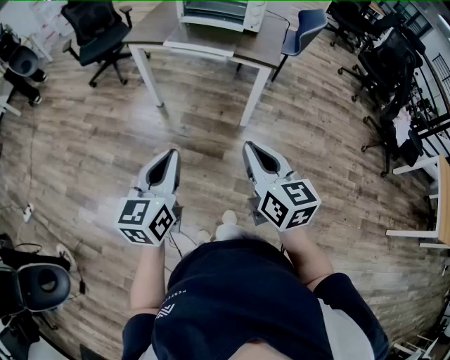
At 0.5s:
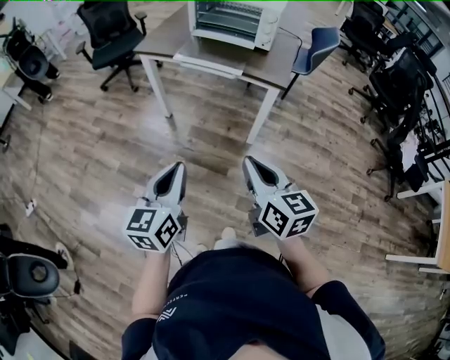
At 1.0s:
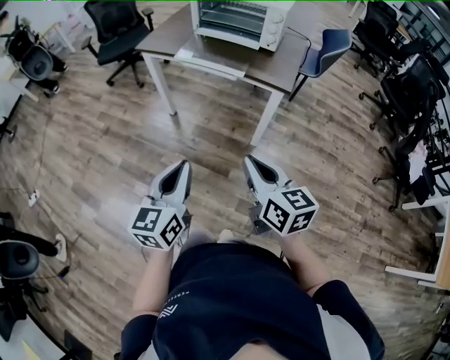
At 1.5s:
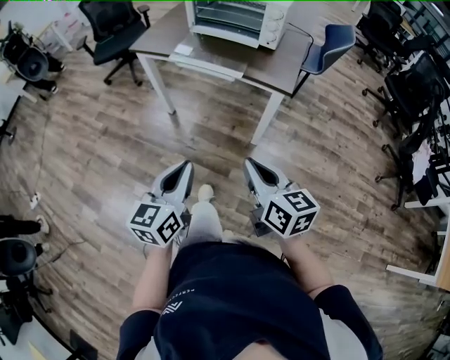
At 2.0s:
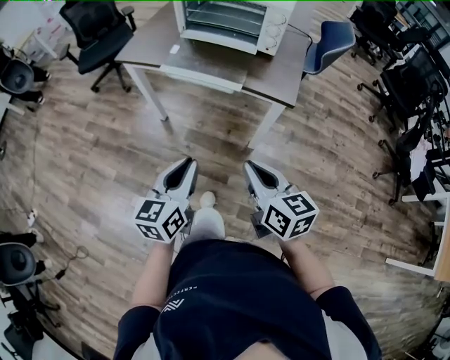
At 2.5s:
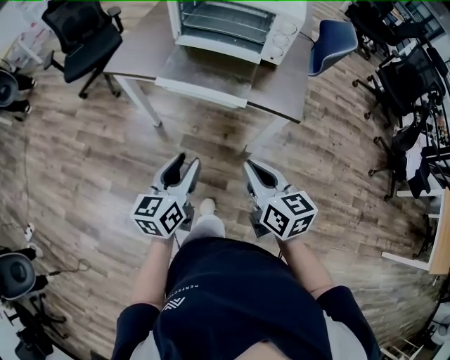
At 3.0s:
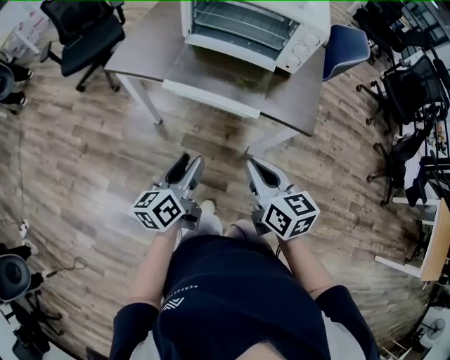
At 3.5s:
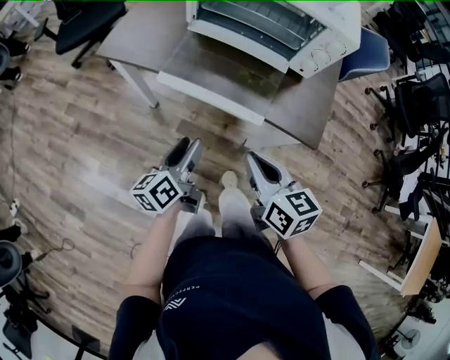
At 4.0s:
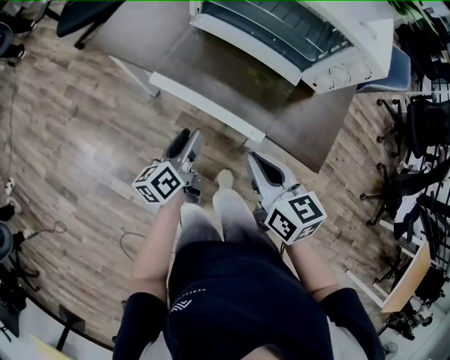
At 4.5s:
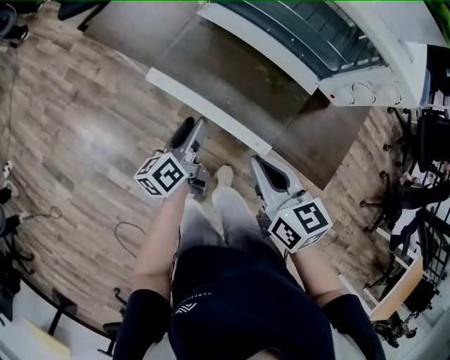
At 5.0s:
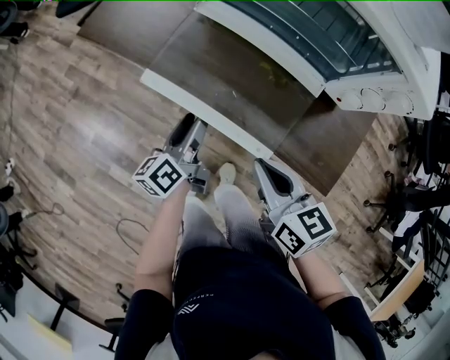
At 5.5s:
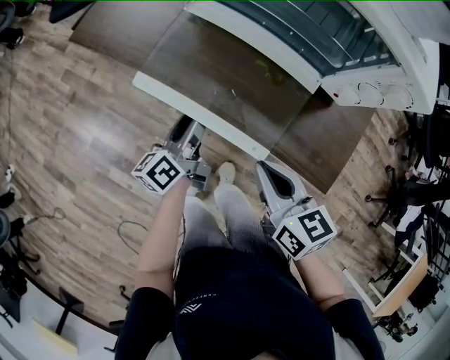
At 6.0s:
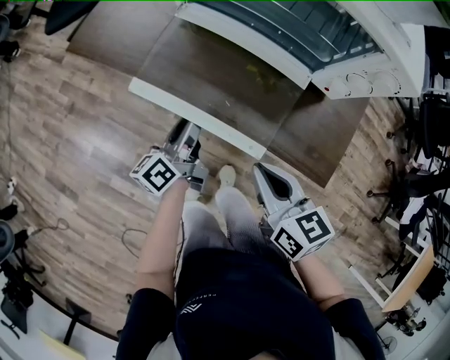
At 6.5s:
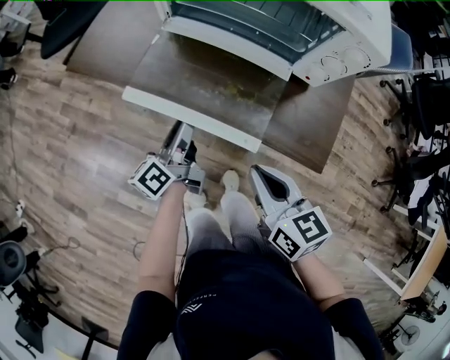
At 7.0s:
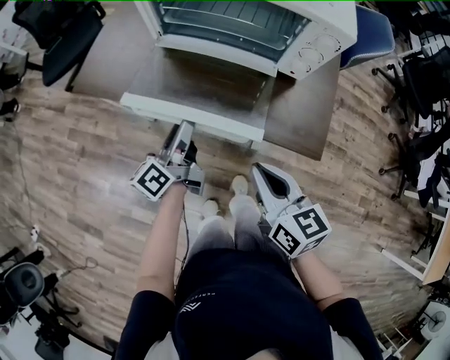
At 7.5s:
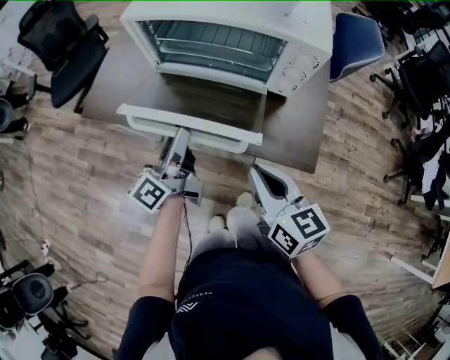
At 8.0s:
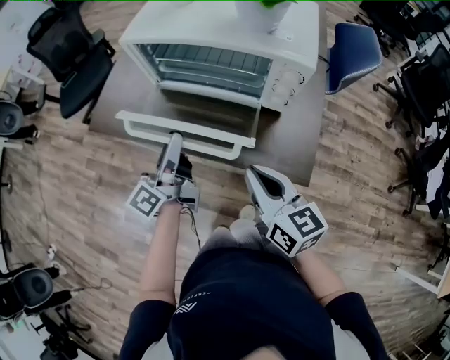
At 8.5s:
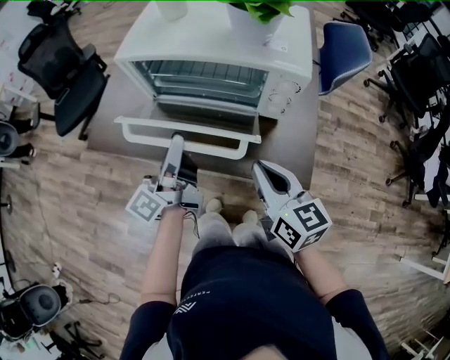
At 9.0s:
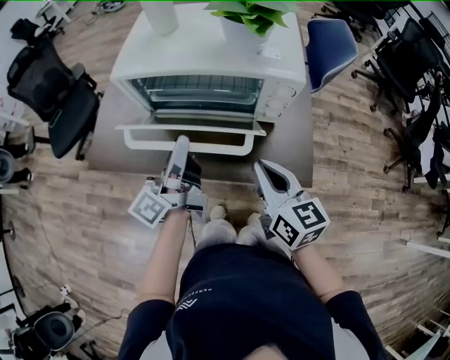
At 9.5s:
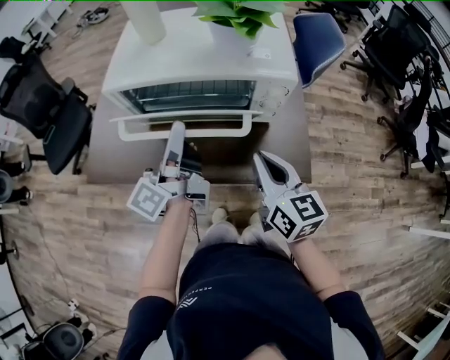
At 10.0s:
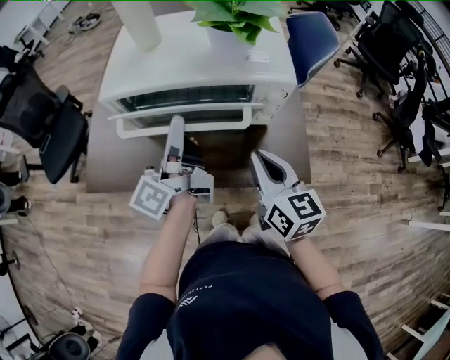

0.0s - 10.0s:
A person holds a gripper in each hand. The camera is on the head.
0.0s - 2.0s: Both grippers travel together forward, some 20 cm.
2.0s - 4.0s: The right gripper moves forward, roughly 25 cm. The left gripper is displaced forward and downward by some 30 cm, rotates about 40 degrees, and opens its fingers.
4.0s - 6.0s: The left gripper shifts approximately 5 cm forward, and closes up.
6.0s - 8.0s: The right gripper travels upward by approximately 10 cm; the left gripper is displaced upward by some 15 cm.
8.0s - 10.0s: The left gripper travels forward and upward by some 15 cm, while the right gripper travels forward by about 10 cm, and changes its angle by some 20 degrees.

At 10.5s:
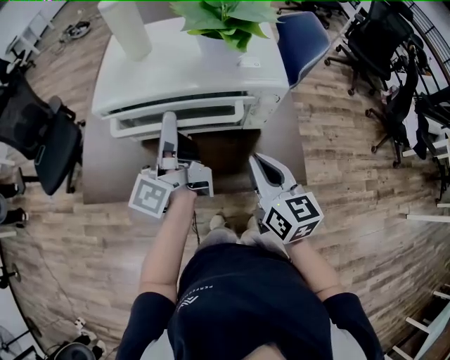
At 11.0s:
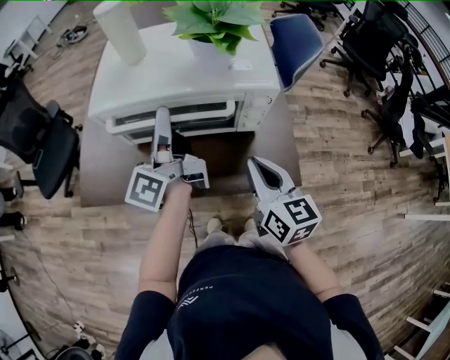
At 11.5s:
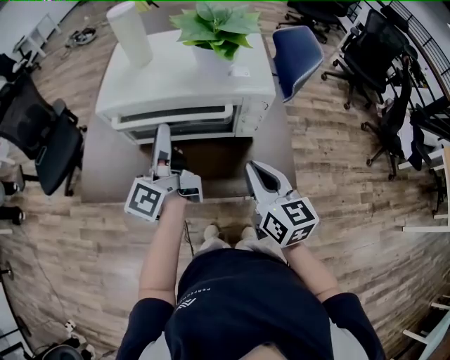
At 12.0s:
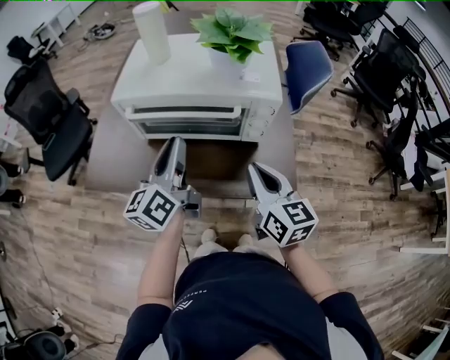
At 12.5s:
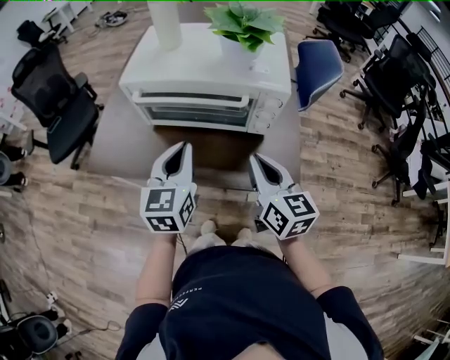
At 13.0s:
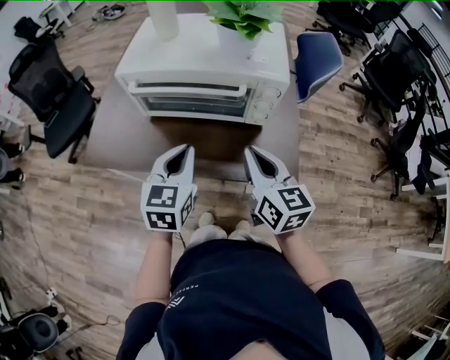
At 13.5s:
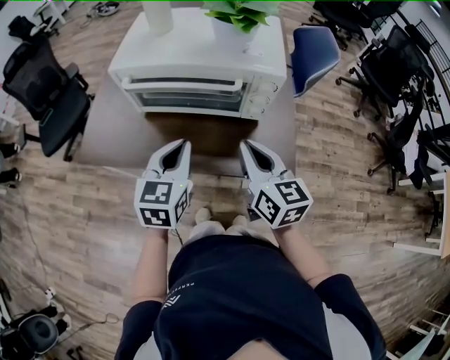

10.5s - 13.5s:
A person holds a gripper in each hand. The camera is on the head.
10.5s - 12.0s: The left gripper travels backward by approximately 5 cm, and changes its angle by roughly 30 degrees.
12.0s - 13.5s: The left gripper moves backward and downward, approximately 10 cm, and turns by about 40 degrees.

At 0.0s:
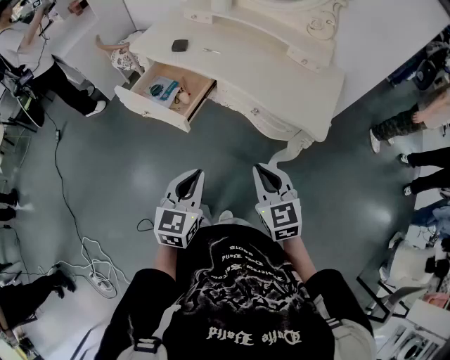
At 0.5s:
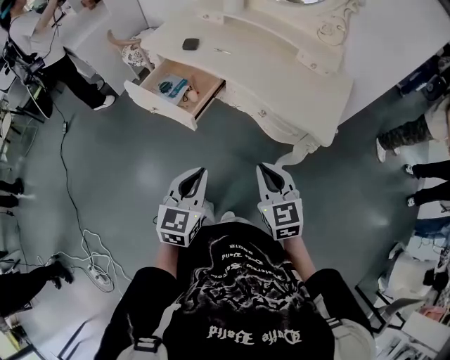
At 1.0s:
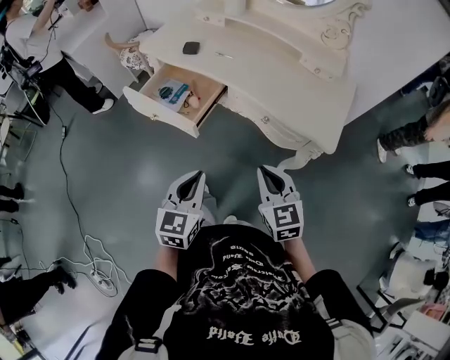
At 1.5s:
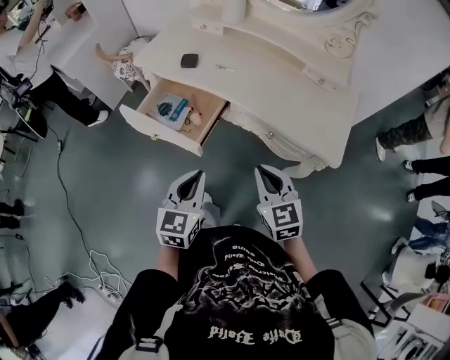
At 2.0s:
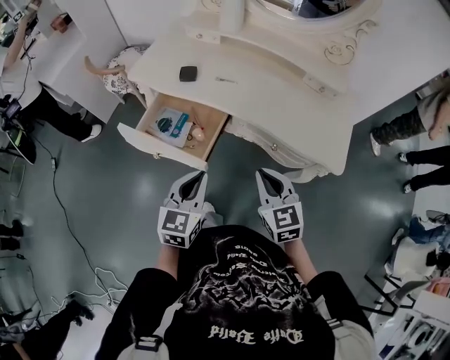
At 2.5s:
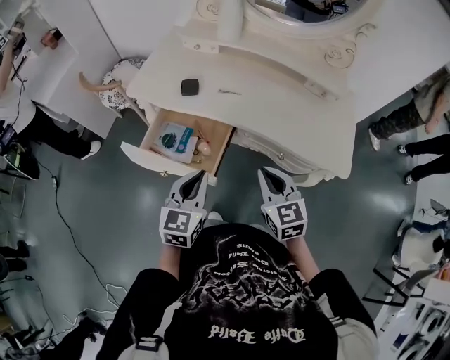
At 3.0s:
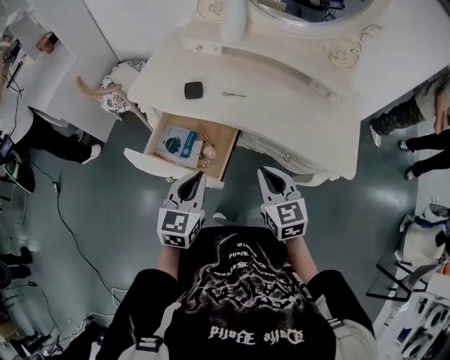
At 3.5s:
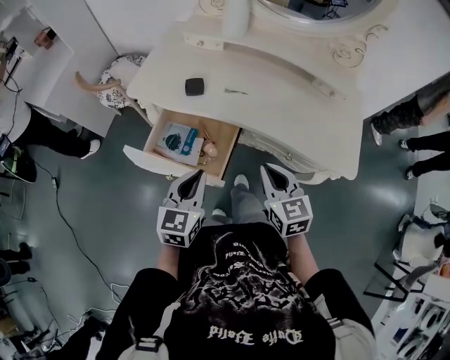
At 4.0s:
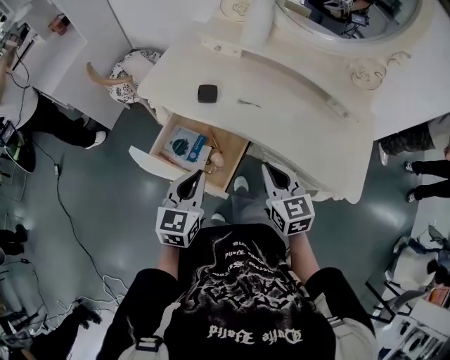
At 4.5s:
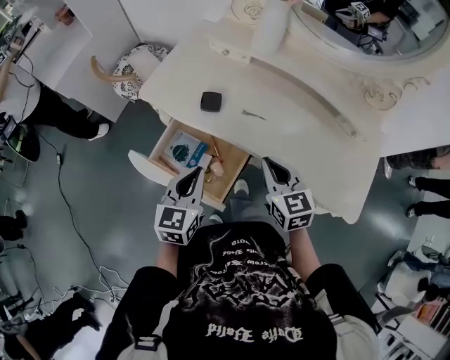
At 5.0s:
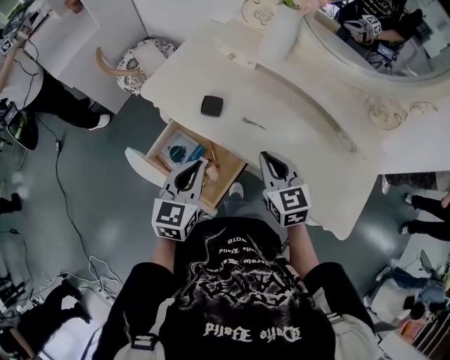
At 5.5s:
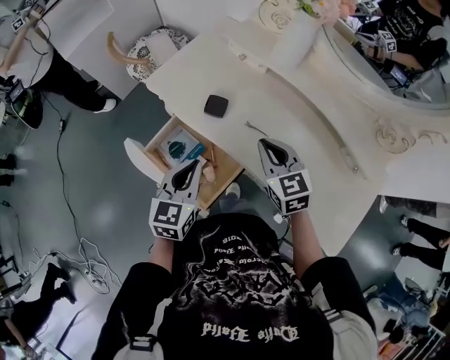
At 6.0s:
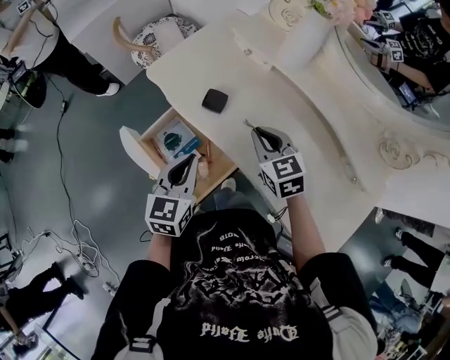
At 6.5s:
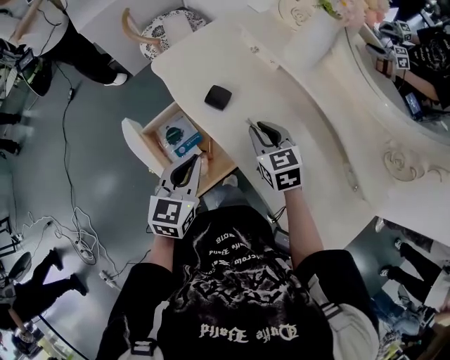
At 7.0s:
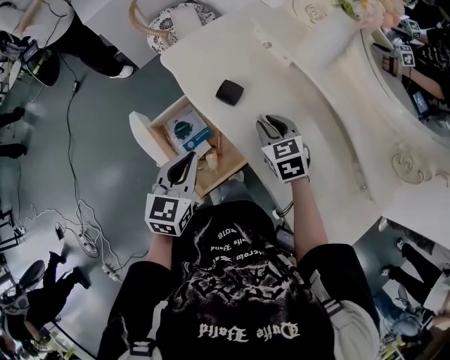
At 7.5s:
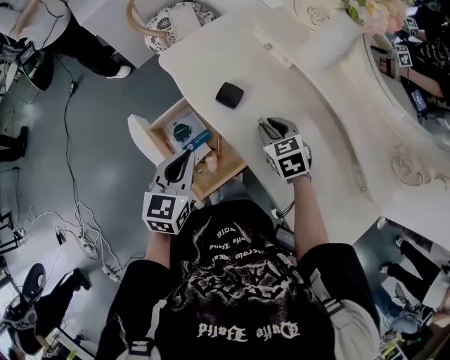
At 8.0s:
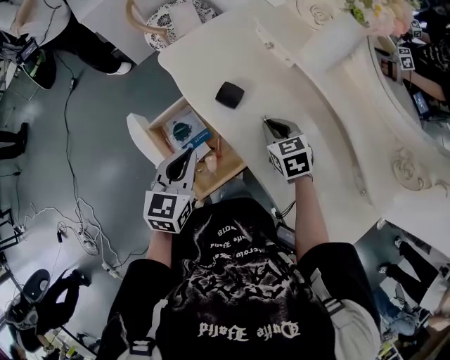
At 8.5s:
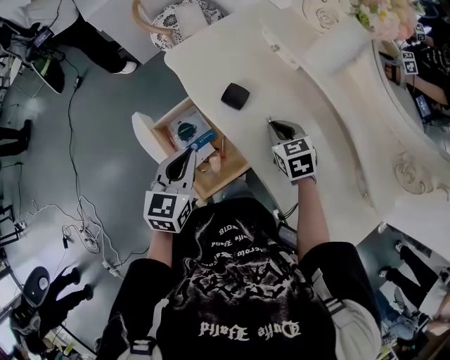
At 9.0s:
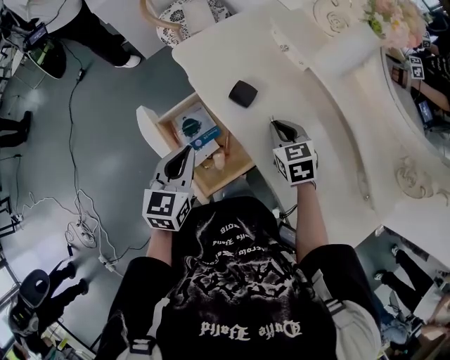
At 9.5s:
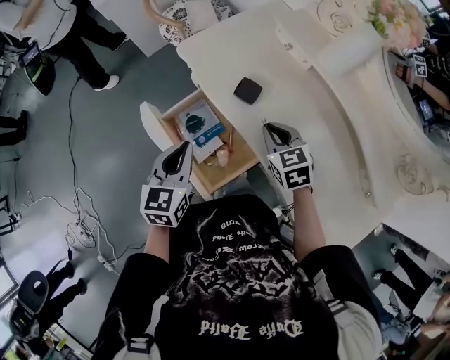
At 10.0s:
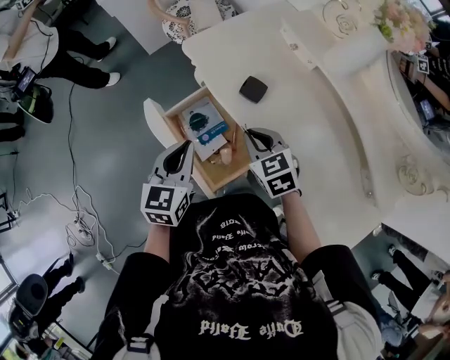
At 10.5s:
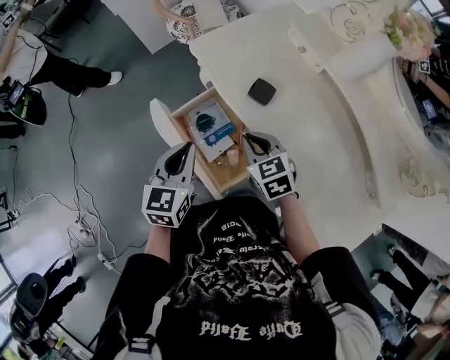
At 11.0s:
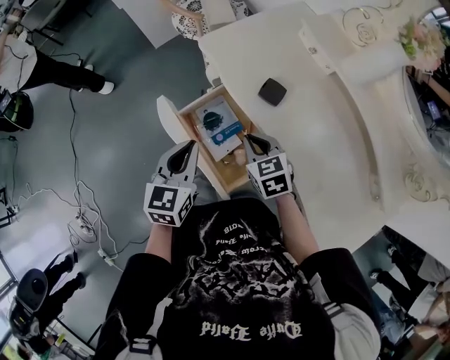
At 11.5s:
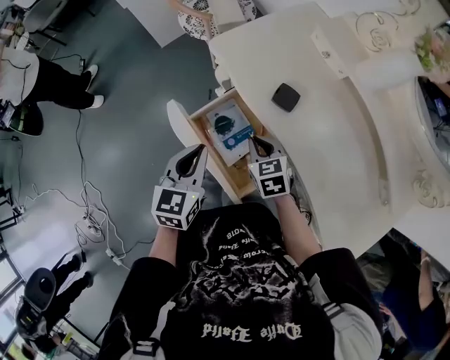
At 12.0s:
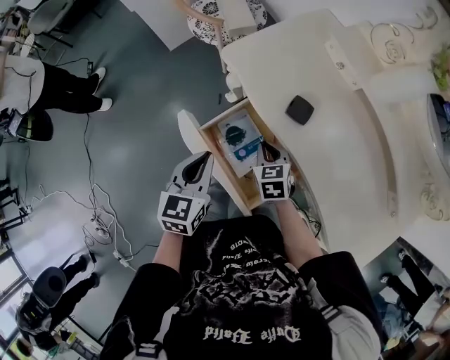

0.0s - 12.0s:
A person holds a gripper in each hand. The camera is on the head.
0.0s - 2.0s: The grippers both shift forward and to the left by about 15 cm.
2.0s - 4.0s: The grippers both shift forward and to the left by roughly 15 cm.
4.0s - 6.0s: The left gripper goes about 10 cm forward, and turns by about 20 degrees; the right gripper goes about 20 cm forward, and rotates roughly 30 degrees.
6.0s - 8.0s: The right gripper heads downward, covering approximately 5 cm.
8.0s - 10.0s: The left gripper is displaced to the left by about 5 cm, while the right gripper shifts approximately 10 cm to the left.
10.0s - 12.0s: The right gripper moves downward and to the left, roughly 10 cm. Meanwhile the left gripper is displaced to the left by approximately 5 cm.

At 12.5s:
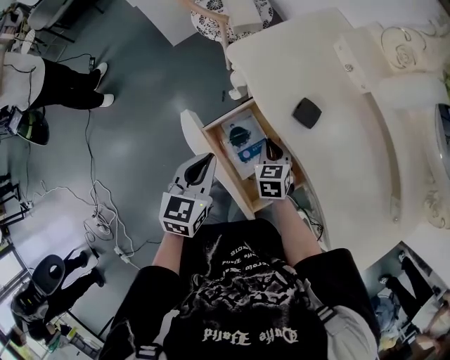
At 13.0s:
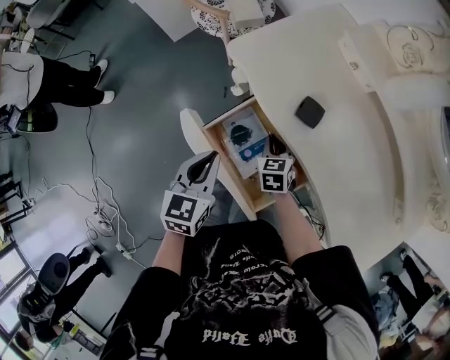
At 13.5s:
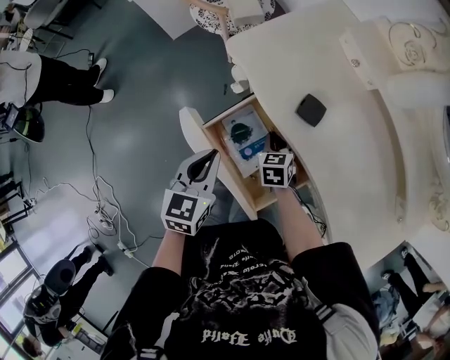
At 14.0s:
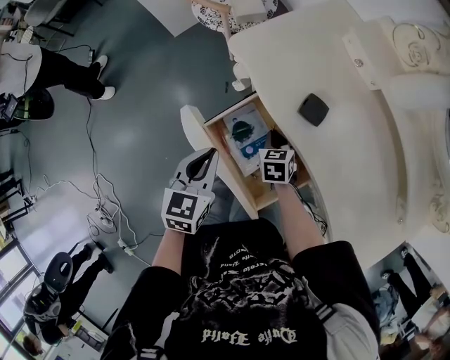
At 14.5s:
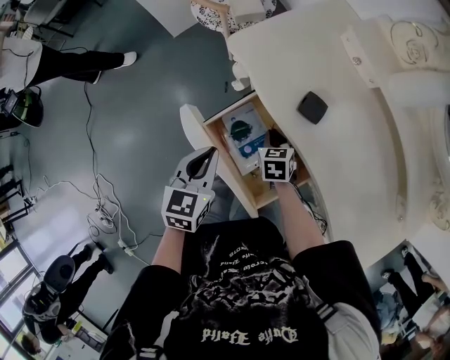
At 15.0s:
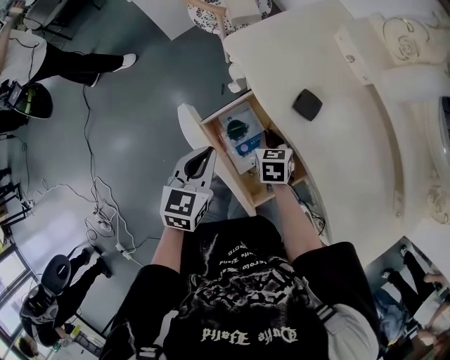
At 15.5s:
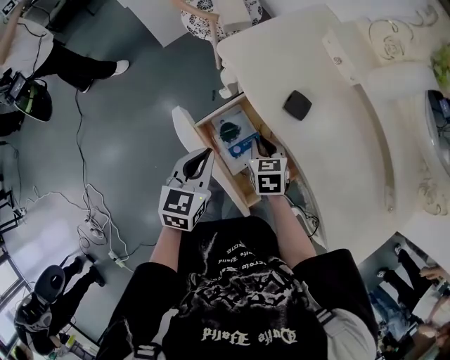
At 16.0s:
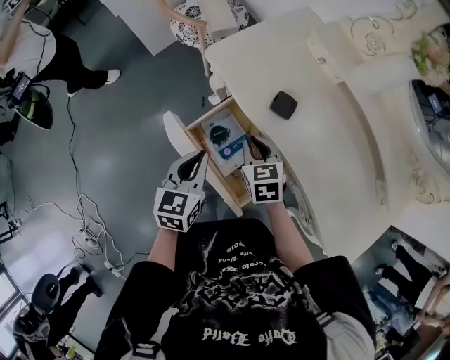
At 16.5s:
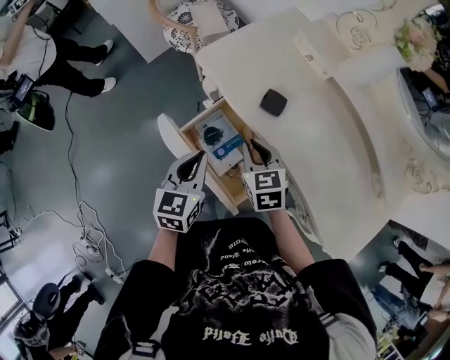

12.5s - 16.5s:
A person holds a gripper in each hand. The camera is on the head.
12.5s - 14.5s: The grippers move only a little.
14.5s - 16.5s: The right gripper goes approximately 15 cm upward.
